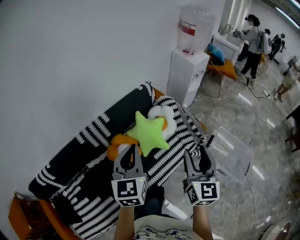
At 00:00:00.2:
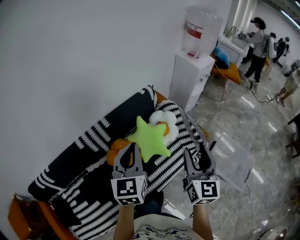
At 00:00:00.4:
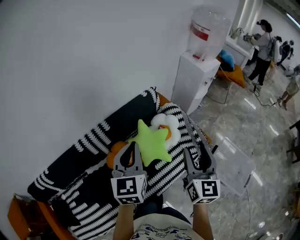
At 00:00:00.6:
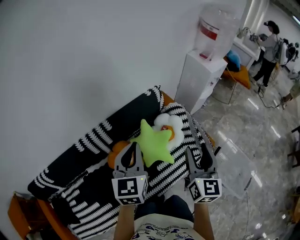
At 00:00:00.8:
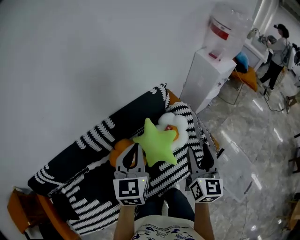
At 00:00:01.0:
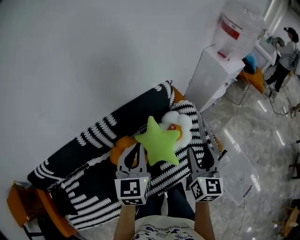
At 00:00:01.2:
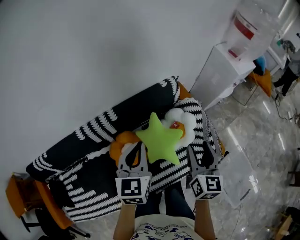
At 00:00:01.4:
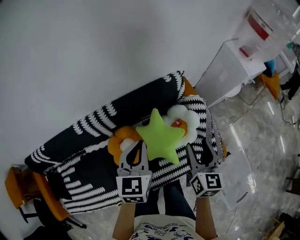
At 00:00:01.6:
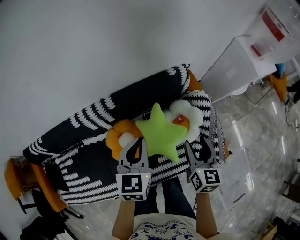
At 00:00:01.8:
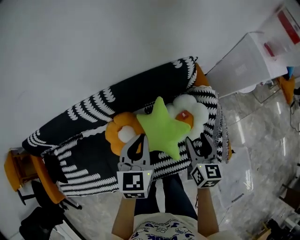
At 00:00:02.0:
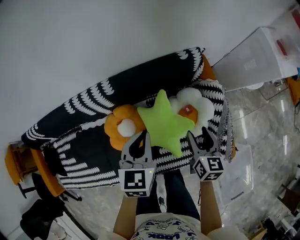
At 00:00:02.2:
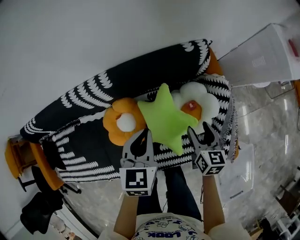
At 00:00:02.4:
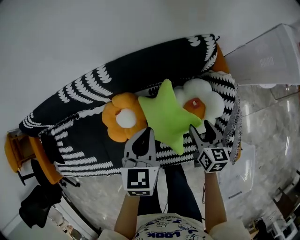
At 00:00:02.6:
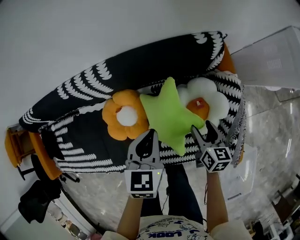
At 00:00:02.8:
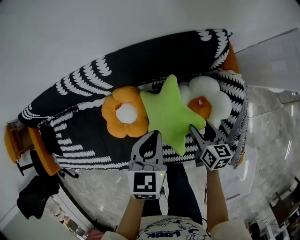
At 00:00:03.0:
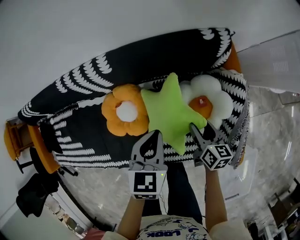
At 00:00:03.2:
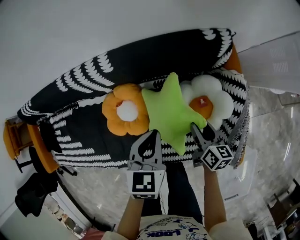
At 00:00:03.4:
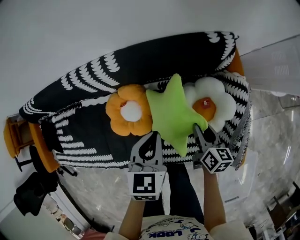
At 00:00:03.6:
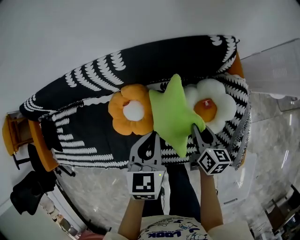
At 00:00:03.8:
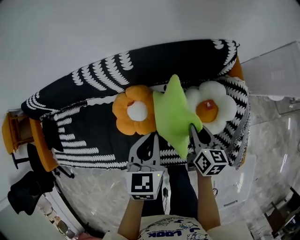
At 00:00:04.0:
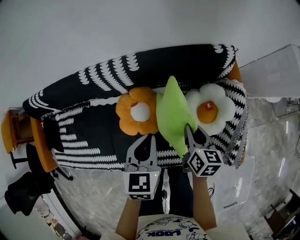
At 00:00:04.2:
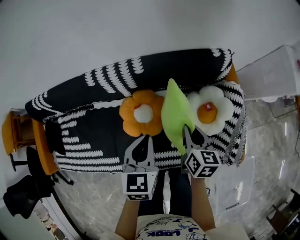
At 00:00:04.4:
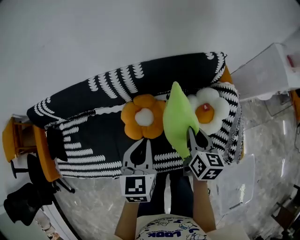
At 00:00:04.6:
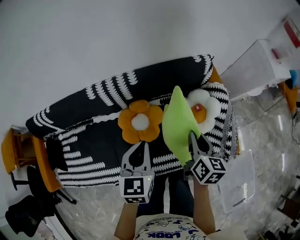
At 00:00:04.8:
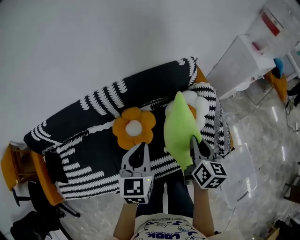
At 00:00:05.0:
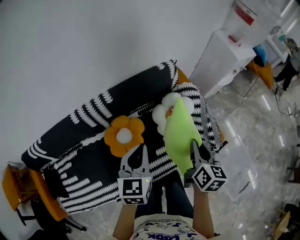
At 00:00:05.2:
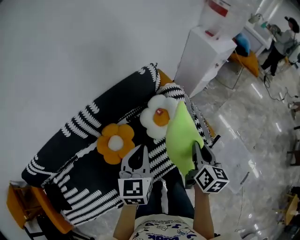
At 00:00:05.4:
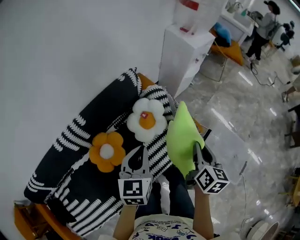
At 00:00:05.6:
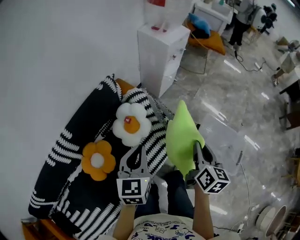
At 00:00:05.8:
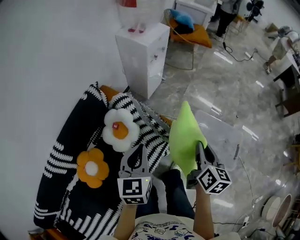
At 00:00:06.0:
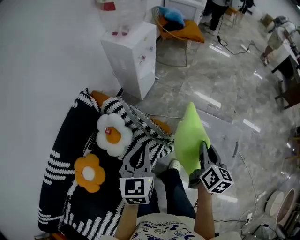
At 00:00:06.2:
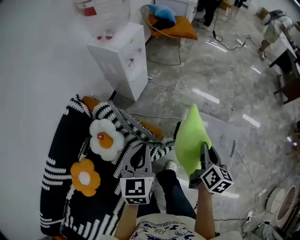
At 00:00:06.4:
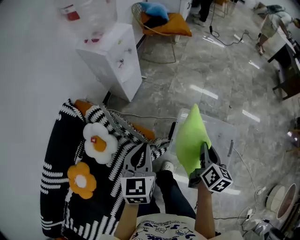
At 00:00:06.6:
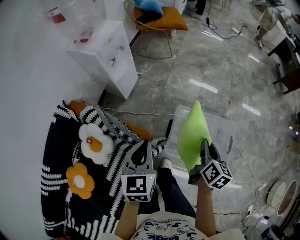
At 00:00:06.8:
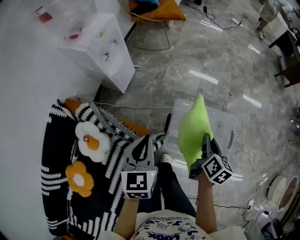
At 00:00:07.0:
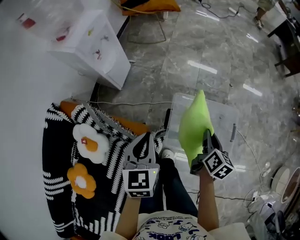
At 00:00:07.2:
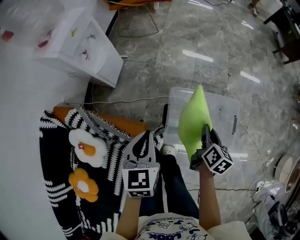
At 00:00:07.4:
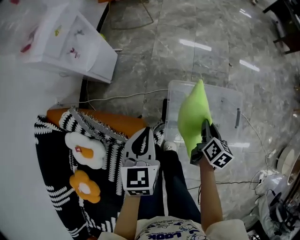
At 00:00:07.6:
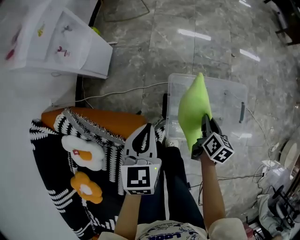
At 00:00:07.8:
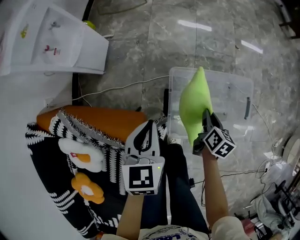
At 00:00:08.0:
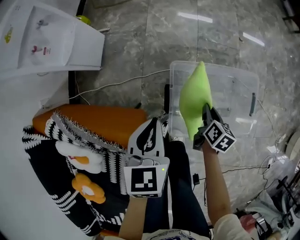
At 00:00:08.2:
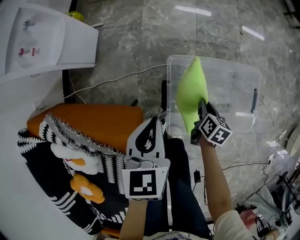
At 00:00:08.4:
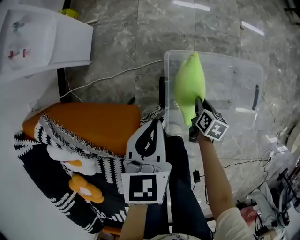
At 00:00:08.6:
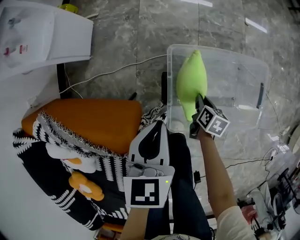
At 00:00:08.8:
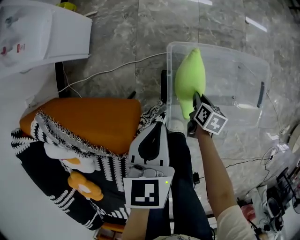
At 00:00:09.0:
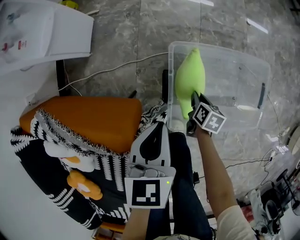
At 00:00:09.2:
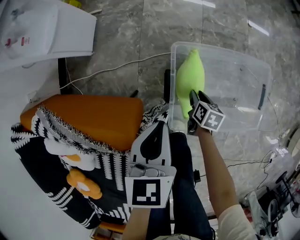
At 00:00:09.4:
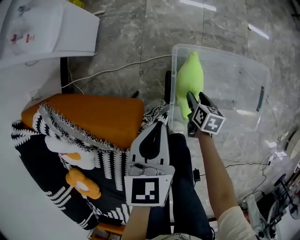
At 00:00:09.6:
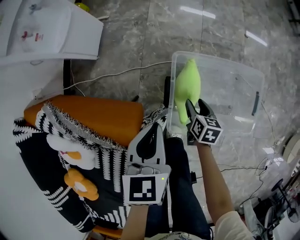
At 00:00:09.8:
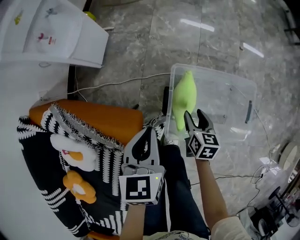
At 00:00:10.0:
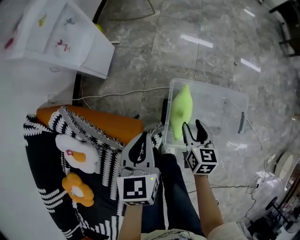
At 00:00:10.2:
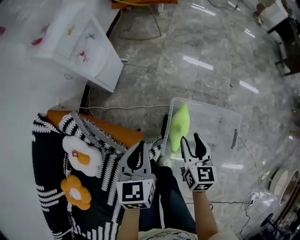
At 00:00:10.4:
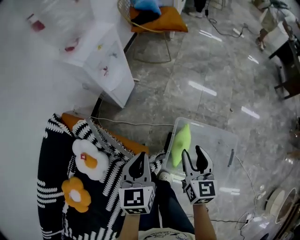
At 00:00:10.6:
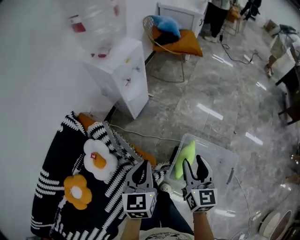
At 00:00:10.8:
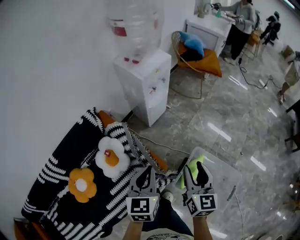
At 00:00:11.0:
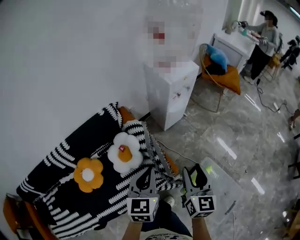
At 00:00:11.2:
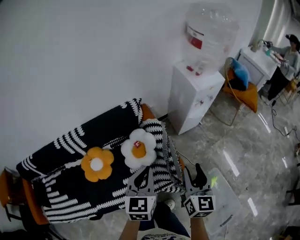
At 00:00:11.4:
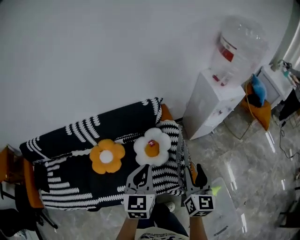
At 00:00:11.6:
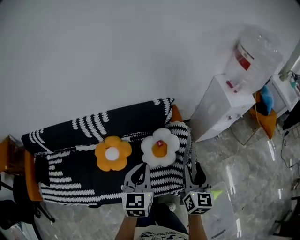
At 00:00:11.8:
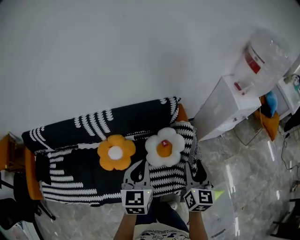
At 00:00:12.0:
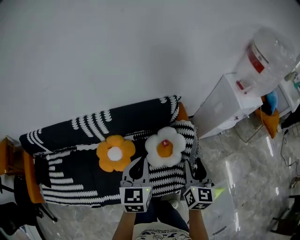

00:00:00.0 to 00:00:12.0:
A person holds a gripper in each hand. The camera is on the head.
00:00:00.0 to 00:00:01.6: Both grippers move forward and downward, some 35 cm. The left gripper changes its angle by roughly 20 degrees; the right gripper swivels approximately 30 degrees.
00:00:01.6 to 00:00:03.0: Both grippers move downward, about 25 cm. The right gripper changes its angle by approximately 30 degrees.
00:00:03.0 to 00:00:04.4: The left gripper goes roughly 20 cm to the left, upward and backward; the right gripper goes approximately 25 cm upward and to the left, and closes its fingers.
00:00:04.4 to 00:00:06.0: The two grippers travel together, roughly 50 cm. The left gripper turns by about 50 degrees, while the right gripper swivels approximately 70 degrees.
00:00:06.0 to 00:00:07.6: The left gripper shifts some 40 cm forward, downward and to the right, and swivels about 30 degrees. The right gripper moves downward, forward and to the right, about 40 cm, and rotates about 30 degrees.
00:00:07.6 to 00:00:09.0: The right gripper shifts about 30 cm downward, while the left gripper travels downward by about 15 cm.
00:00:09.0 to 00:00:10.4: The right gripper moves upward, about 50 cm, tips its fingers upward by some 40 degrees, and opens its fingers. Meanwhile the left gripper shifts roughly 30 cm upward, and changes its angle by approximately 20 degrees.
00:00:10.4 to 00:00:12.0: The pair of grippers is taken approximately 50 cm. The left gripper turns by approximately 50 degrees. Meanwhile the right gripper turns by about 50 degrees.

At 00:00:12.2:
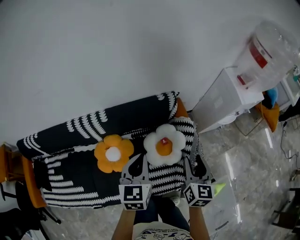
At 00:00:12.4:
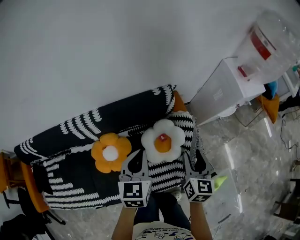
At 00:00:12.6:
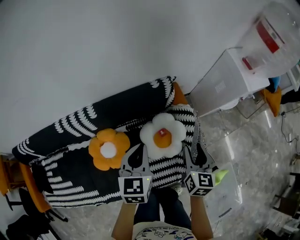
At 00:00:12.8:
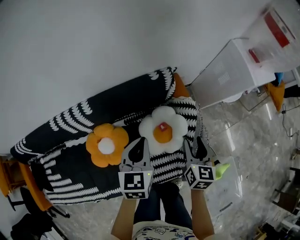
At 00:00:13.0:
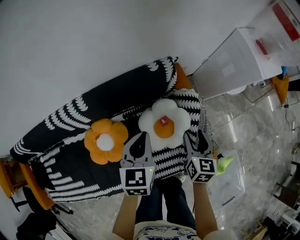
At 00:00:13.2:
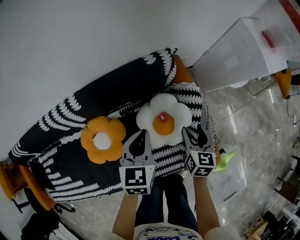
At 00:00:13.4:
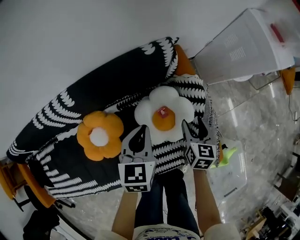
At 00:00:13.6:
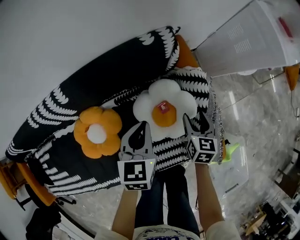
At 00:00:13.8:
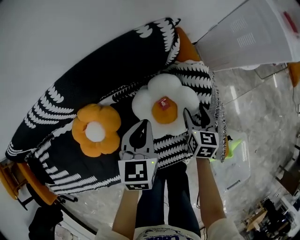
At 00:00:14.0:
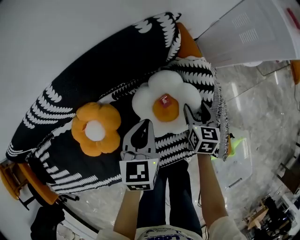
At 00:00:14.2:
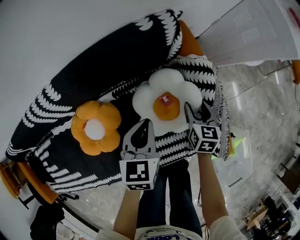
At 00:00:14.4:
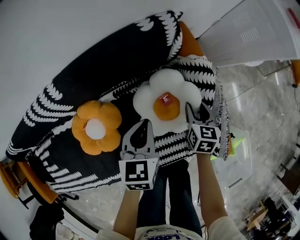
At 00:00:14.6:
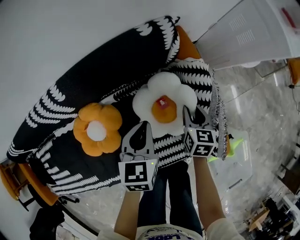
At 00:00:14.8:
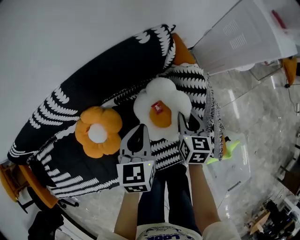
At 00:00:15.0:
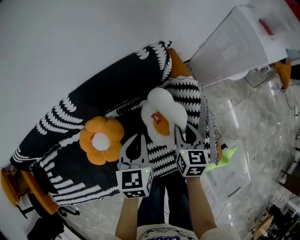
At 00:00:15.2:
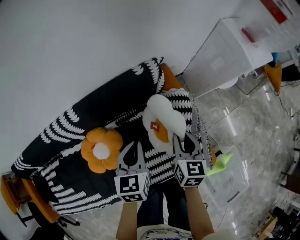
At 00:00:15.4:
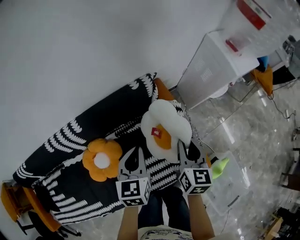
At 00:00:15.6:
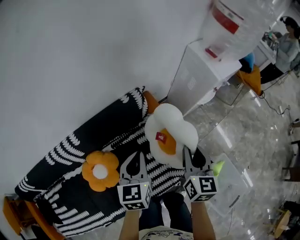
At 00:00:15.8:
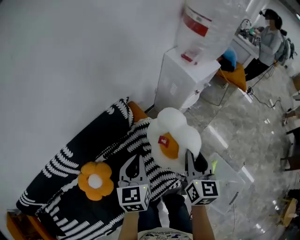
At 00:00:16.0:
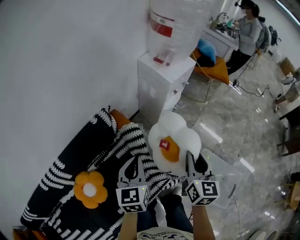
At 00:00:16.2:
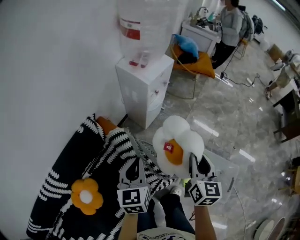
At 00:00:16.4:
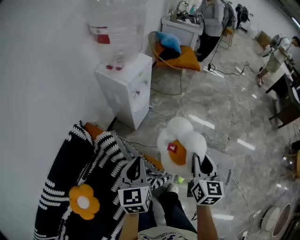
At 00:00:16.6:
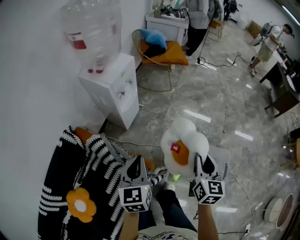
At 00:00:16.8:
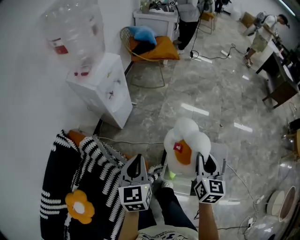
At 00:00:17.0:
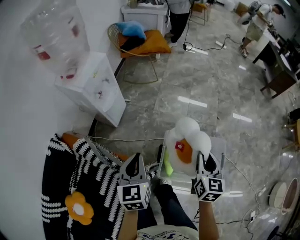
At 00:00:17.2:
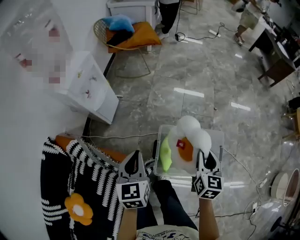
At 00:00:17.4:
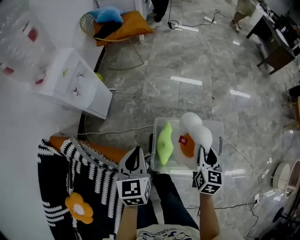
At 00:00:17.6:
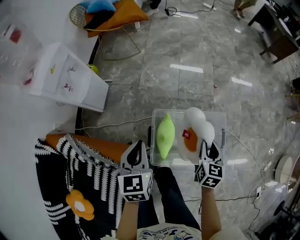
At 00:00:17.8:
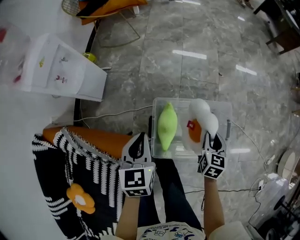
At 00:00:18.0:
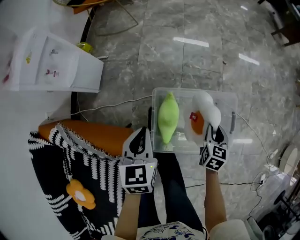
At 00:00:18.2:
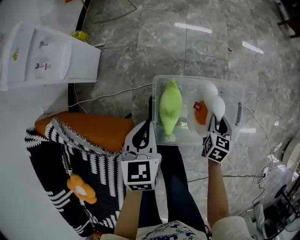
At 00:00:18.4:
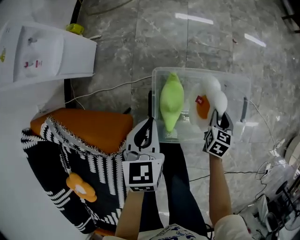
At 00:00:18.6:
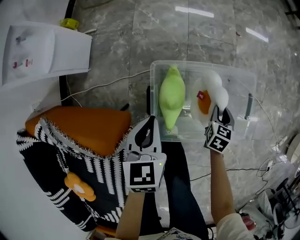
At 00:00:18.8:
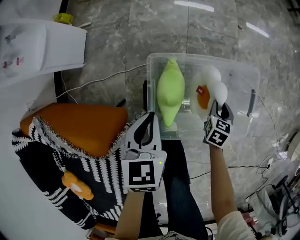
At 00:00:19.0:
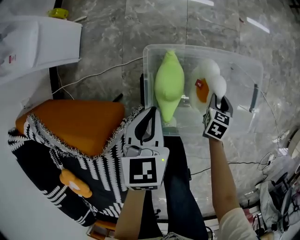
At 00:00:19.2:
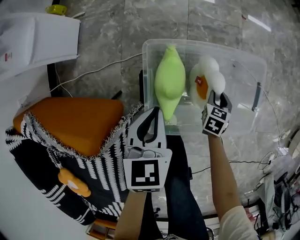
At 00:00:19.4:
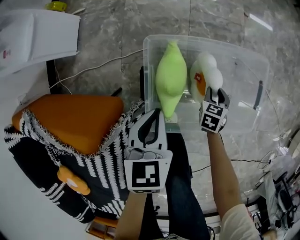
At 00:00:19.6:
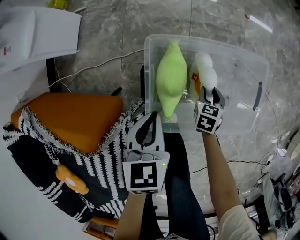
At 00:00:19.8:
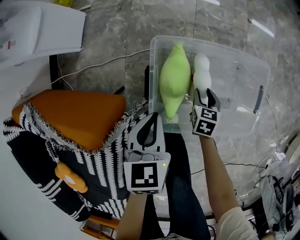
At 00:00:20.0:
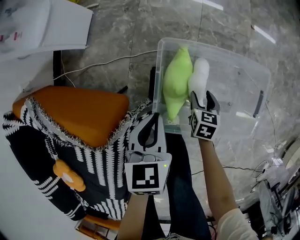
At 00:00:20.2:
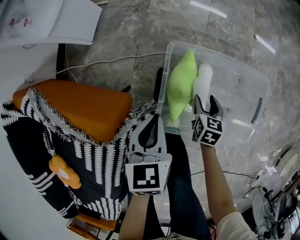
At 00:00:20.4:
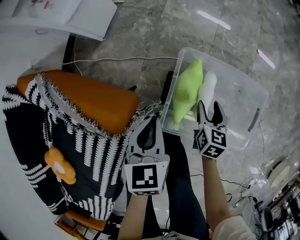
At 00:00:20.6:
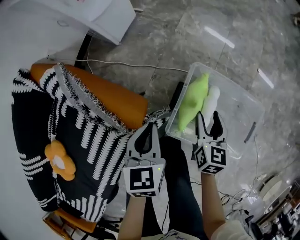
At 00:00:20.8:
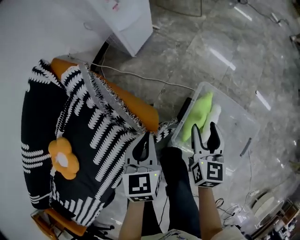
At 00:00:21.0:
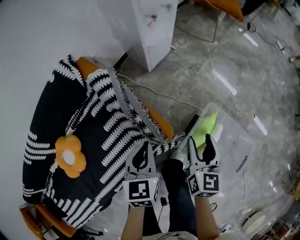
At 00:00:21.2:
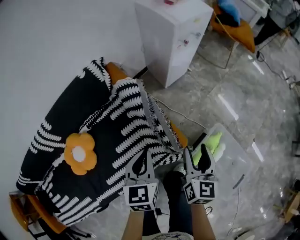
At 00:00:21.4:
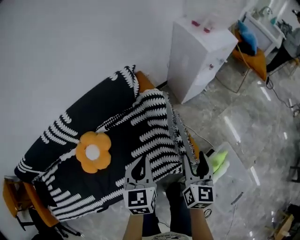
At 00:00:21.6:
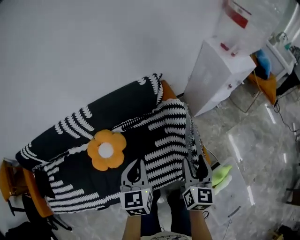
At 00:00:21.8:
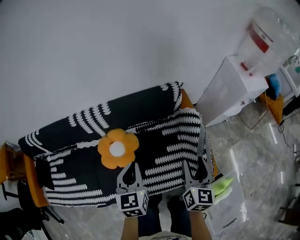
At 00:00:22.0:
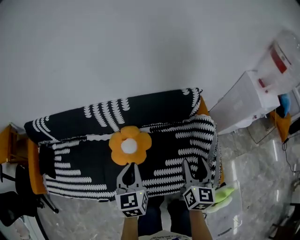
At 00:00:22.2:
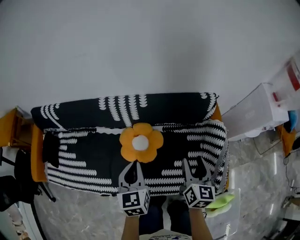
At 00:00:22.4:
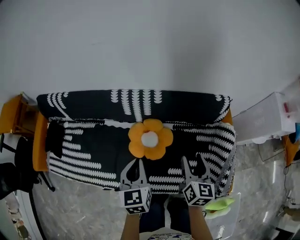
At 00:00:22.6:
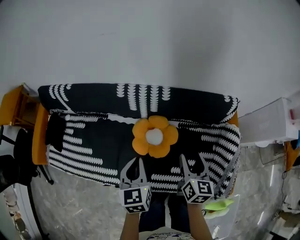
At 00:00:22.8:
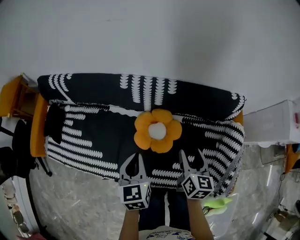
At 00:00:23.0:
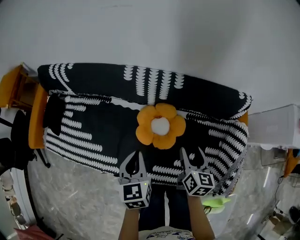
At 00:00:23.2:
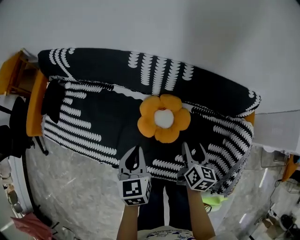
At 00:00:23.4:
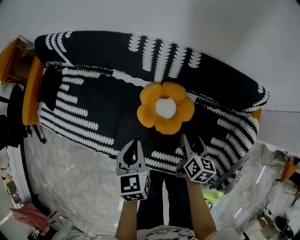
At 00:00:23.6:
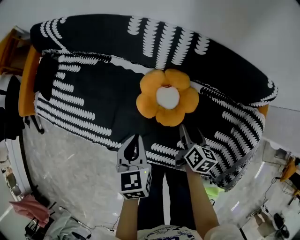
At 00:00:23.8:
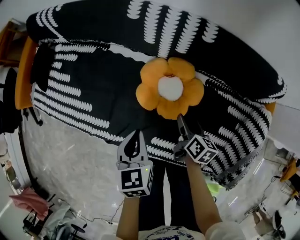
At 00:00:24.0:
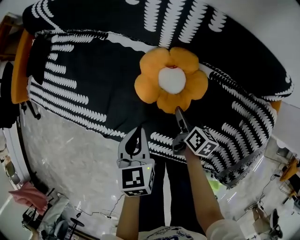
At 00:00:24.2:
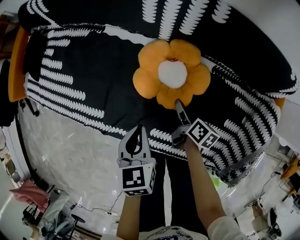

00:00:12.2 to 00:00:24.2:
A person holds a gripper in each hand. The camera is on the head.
00:00:12.2 to 00:00:13.8: The right gripper travels downward by roughly 35 cm, and rotates some 20 degrees. Meanwhile the left gripper moves downward and forward, some 30 cm.
00:00:13.8 to 00:00:15.2: The right gripper heads upward, covering some 20 cm, and closes, while the left gripper shifts approximately 10 cm upward.
00:00:15.2 to 00:00:16.6: The two grippers travel together, approximately 50 cm. The right gripper turns by some 50 degrees, while the left gripper rotates approximately 40 degrees.
00:00:16.6 to 00:00:18.2: The two grippers go about 35 cm downward. The left gripper swivels about 30 degrees. Meanwhile the right gripper angles its fingers downward, by some 30 degrees.
00:00:18.2 to 00:00:19.8: Both grippers move downward, about 20 cm.
00:00:19.8 to 00:00:21.2: The two grippers travel together, about 40 cm. The left gripper changes its angle by approximately 50 degrees; the right gripper moves upward, approximately 50 cm, and points its fingers some 40 degrees further upward.
00:00:21.2 to 00:00:22.6: The pair of grippers is taken about 60 cm. The right gripper swivels some 50 degrees. The left gripper turns by about 50 degrees.
00:00:22.6 to 00:00:24.2: The two grippers go about 30 cm downward. The left gripper swivels approximately 20 degrees, while the right gripper rotates roughly 40 degrees.
